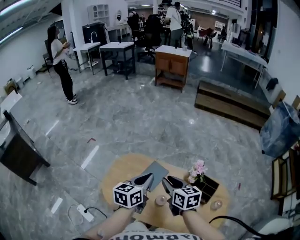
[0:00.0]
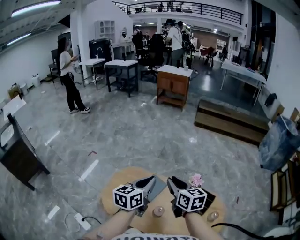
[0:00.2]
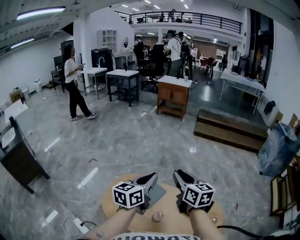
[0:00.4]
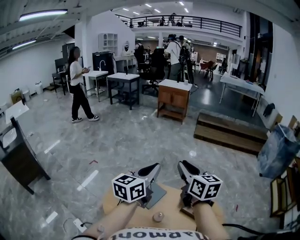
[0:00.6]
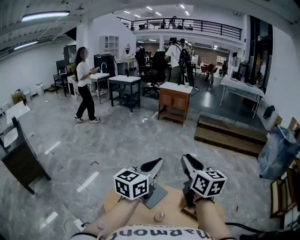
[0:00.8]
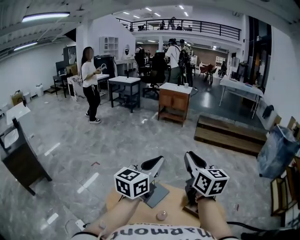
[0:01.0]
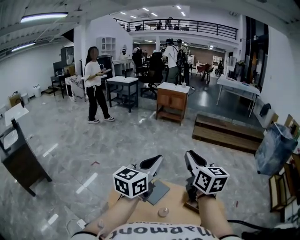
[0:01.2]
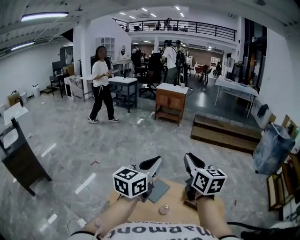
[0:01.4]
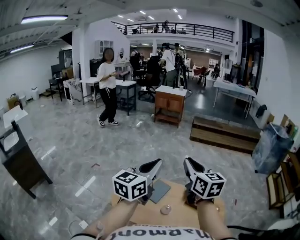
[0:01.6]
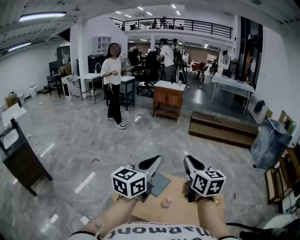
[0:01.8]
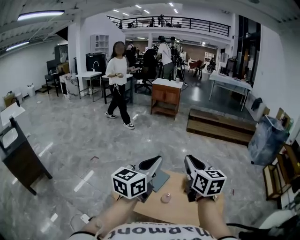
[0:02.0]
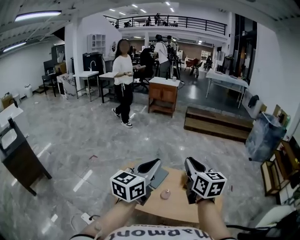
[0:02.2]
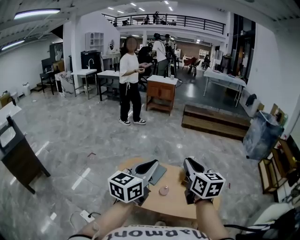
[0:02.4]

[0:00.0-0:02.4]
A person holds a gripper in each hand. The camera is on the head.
0:00.0 to 0:01.2: Both grippers travel together upward, approximately 25 cm. The left gripper turns by about 30 degrees; the right gripper rotates approximately 30 degrees.
0:01.2 to 0:02.4: Both grippers travel together backward, approximately 15 cm.

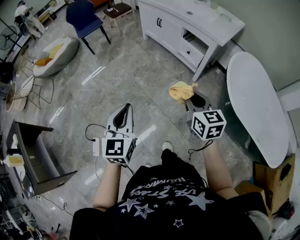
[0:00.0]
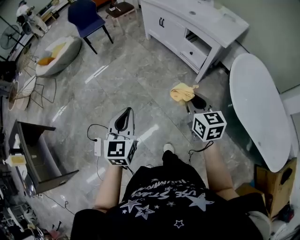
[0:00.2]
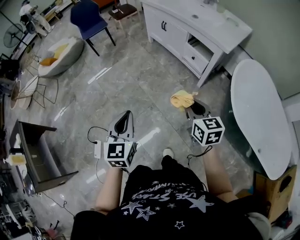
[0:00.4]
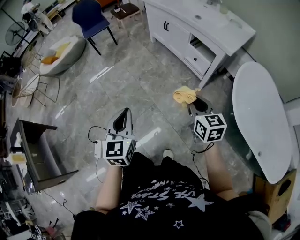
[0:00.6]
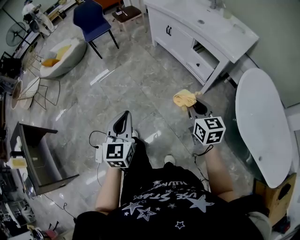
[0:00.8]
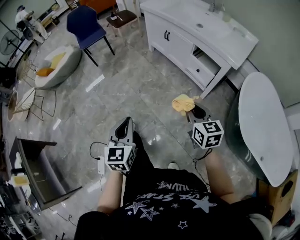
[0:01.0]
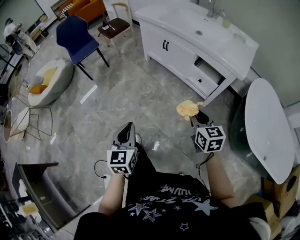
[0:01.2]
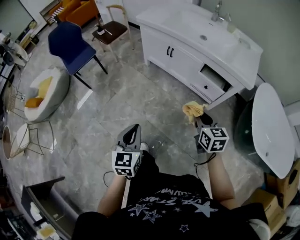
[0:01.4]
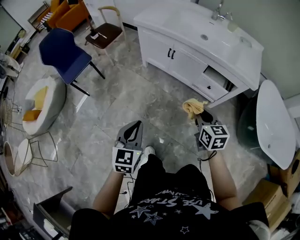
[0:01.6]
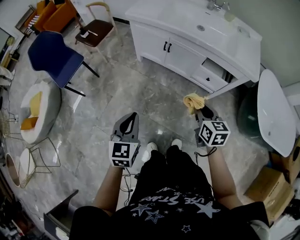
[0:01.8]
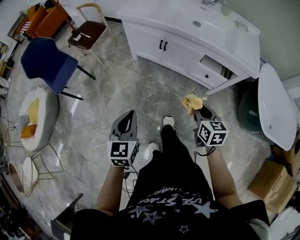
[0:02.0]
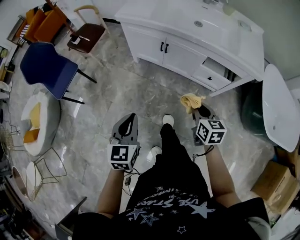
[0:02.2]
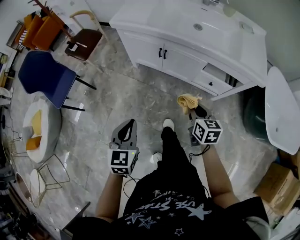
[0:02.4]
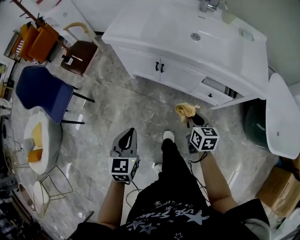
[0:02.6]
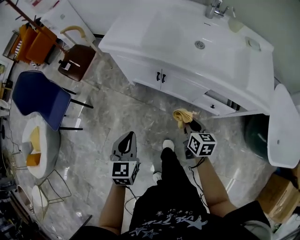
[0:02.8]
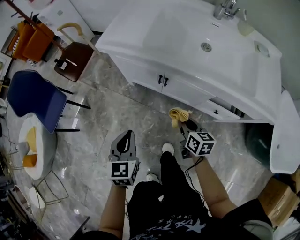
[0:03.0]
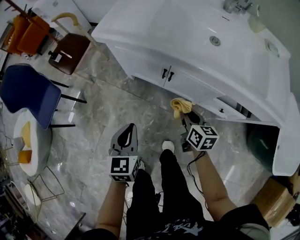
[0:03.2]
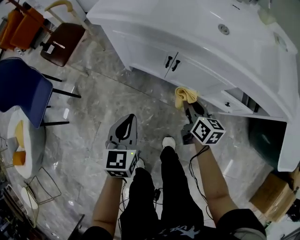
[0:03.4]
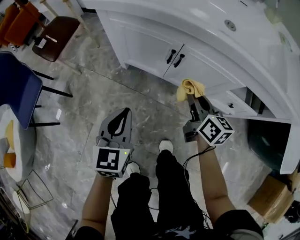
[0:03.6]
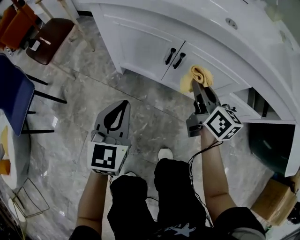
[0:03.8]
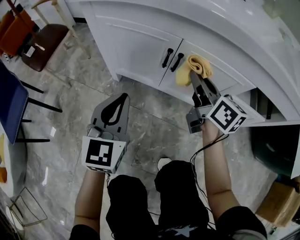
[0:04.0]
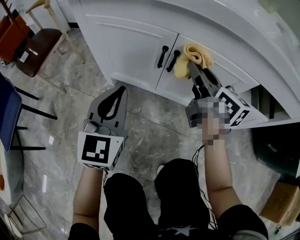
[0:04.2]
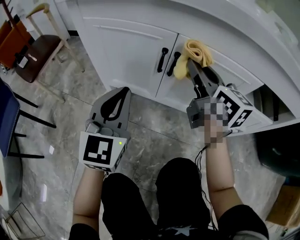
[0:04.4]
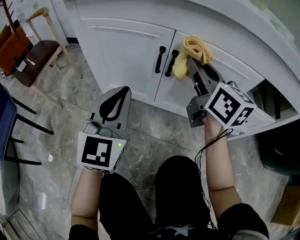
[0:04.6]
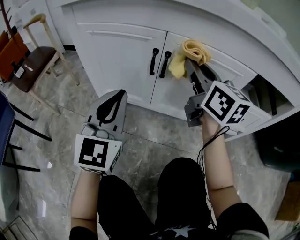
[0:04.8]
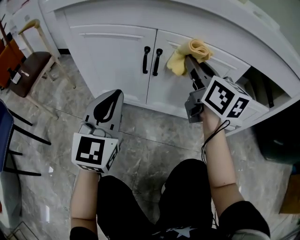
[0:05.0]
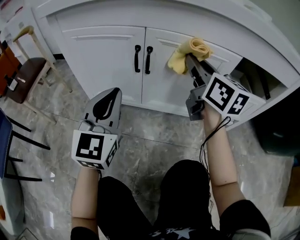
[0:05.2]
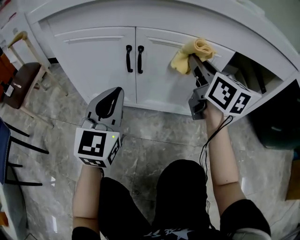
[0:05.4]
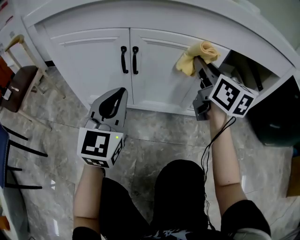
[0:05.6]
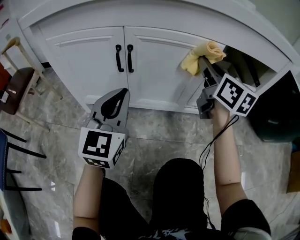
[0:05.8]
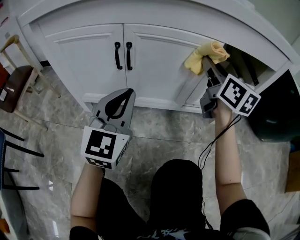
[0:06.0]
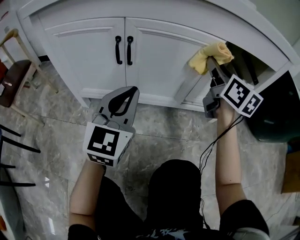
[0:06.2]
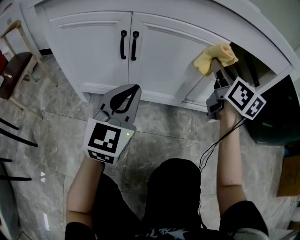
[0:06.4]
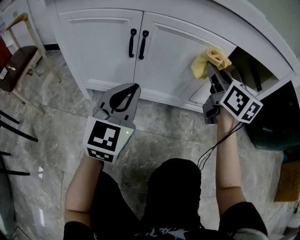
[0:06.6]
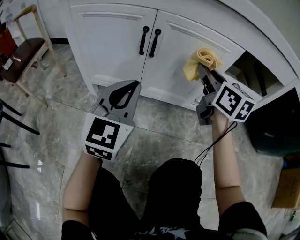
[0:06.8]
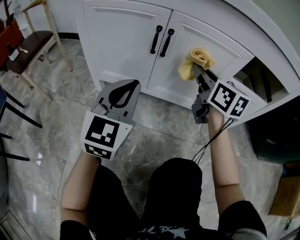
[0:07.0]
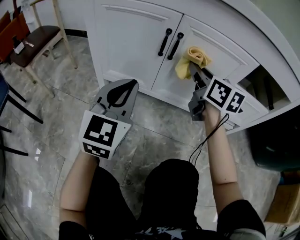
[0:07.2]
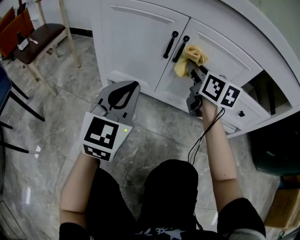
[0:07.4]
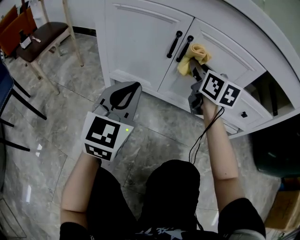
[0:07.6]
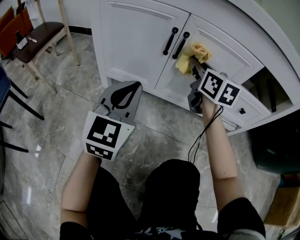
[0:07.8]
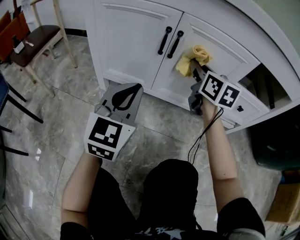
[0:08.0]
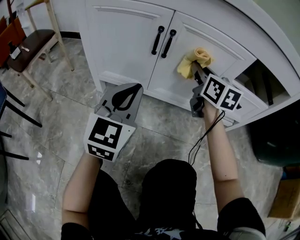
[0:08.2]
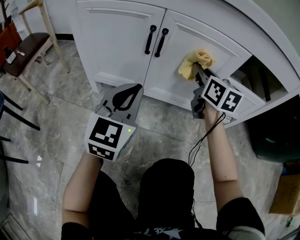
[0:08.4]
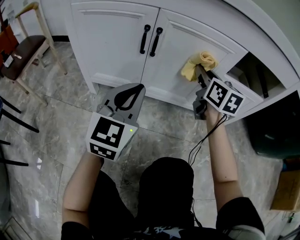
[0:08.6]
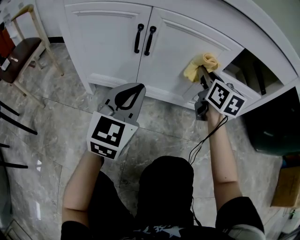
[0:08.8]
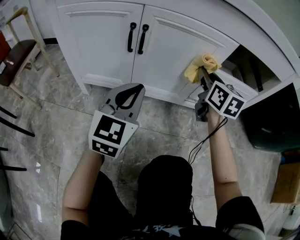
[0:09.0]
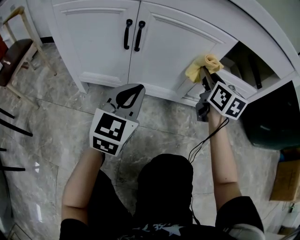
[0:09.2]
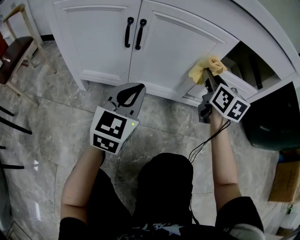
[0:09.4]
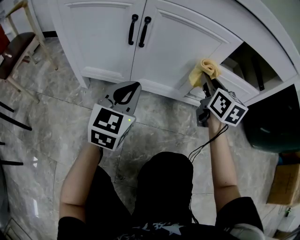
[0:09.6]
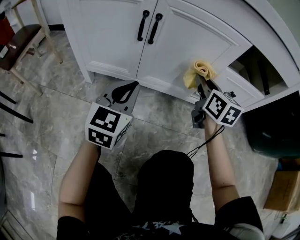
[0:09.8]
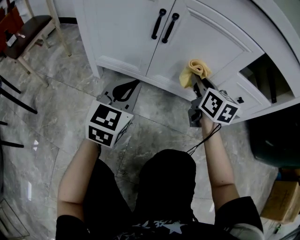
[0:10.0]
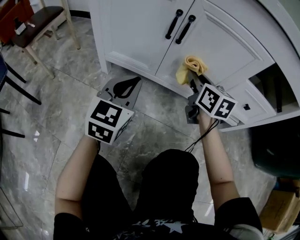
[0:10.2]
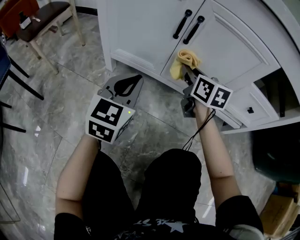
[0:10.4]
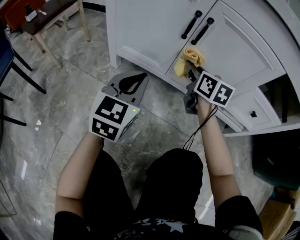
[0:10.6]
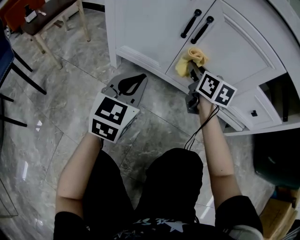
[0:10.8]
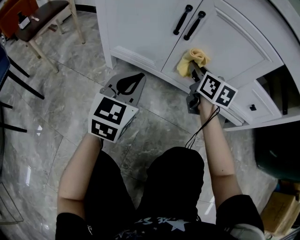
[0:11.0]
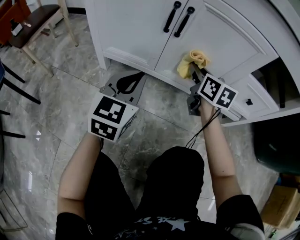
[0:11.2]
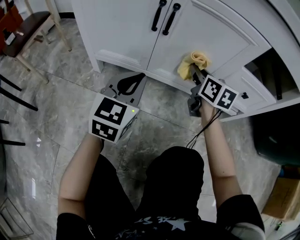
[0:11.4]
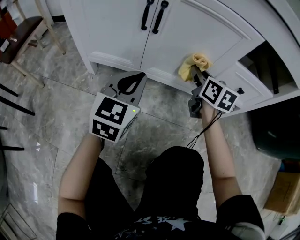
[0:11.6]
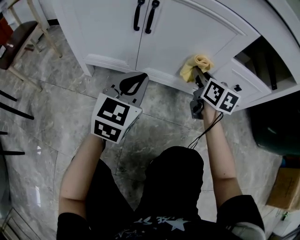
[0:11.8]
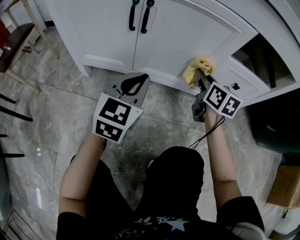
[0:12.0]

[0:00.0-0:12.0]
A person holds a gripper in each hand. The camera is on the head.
0:00.0 to 0:01.6: Both grippers are carried approximately 50 cm. The right gripper turns by approximately 20 degrees; the left gripper turns by approximately 30 degrees.
0:01.6 to 0:03.0: The right gripper shifts some 40 cm forward and downward, and rotates roughly 20 degrees; the left gripper travels forward by approximately 35 cm.
0:03.0 to 0:04.4: The right gripper is displaced forward and downward by about 20 cm, and rotates about 30 degrees, while the left gripper shifts approximately 30 cm downward and forward, and turns by approximately 30 degrees.
0:04.4 to 0:06.0: The left gripper heads to the right, covering about 10 cm, while the right gripper travels to the right by some 20 cm, and turns by approximately 20 degrees.
0:06.0 to 0:07.6: The right gripper is displaced to the left by about 20 cm; the left gripper travels to the left by roughly 10 cm.
0:07.6 to 0:09.0: The right gripper moves to the right, approximately 20 cm, while the left gripper shifts approximately 10 cm to the right.
0:09.0 to 0:10.4: The right gripper travels to the left and downward by some 20 cm, and turns by approximately 20 degrees; the left gripper shifts roughly 10 cm to the left and downward.
0:10.4 to 0:12.0: The left gripper heads to the right, covering some 15 cm. Meanwhile the right gripper travels to the right by about 20 cm.

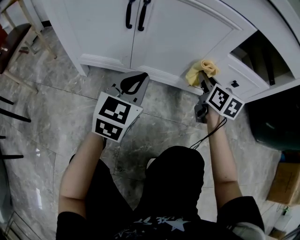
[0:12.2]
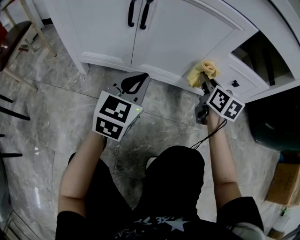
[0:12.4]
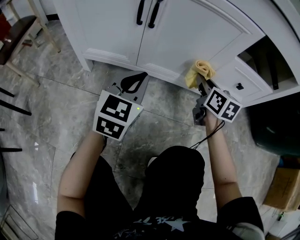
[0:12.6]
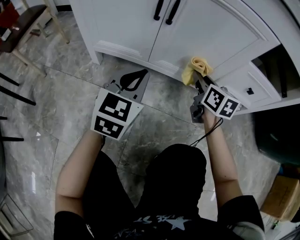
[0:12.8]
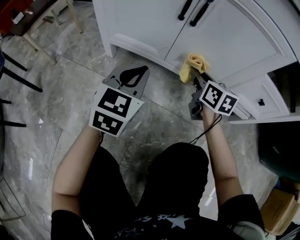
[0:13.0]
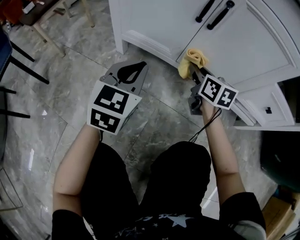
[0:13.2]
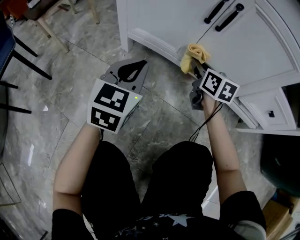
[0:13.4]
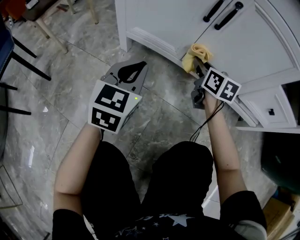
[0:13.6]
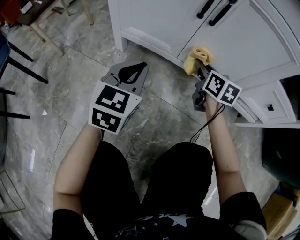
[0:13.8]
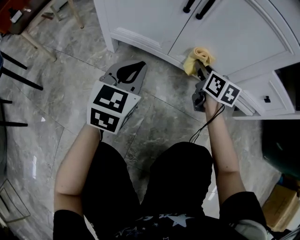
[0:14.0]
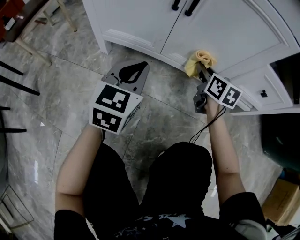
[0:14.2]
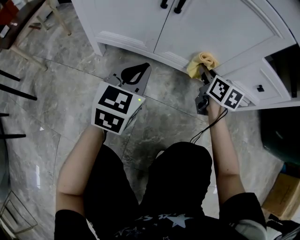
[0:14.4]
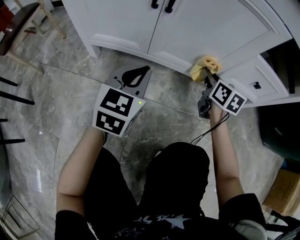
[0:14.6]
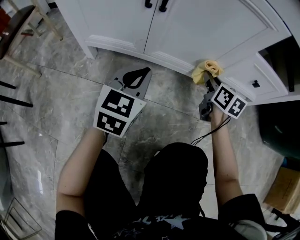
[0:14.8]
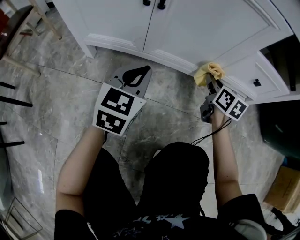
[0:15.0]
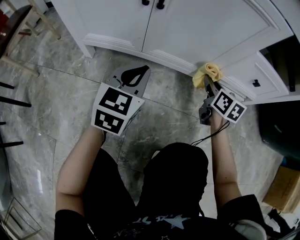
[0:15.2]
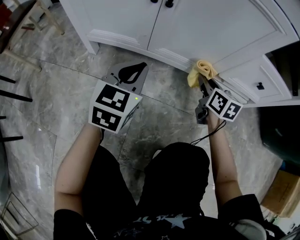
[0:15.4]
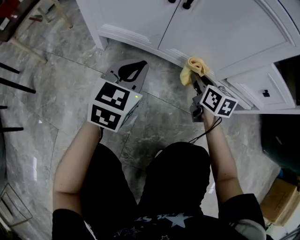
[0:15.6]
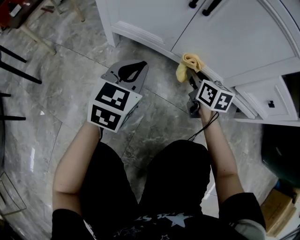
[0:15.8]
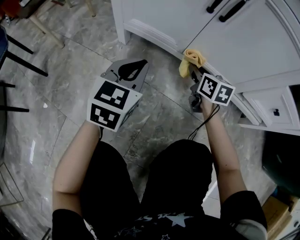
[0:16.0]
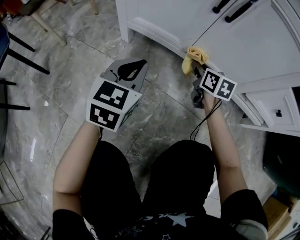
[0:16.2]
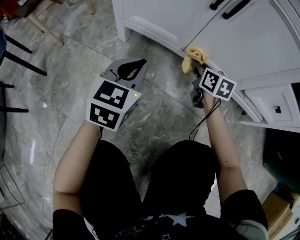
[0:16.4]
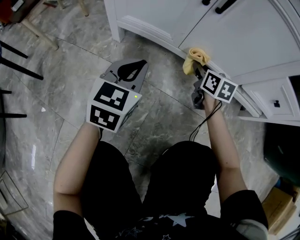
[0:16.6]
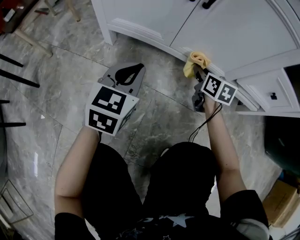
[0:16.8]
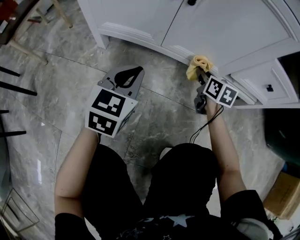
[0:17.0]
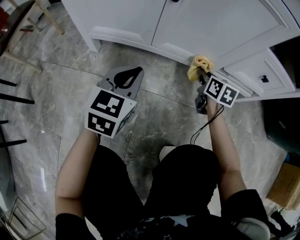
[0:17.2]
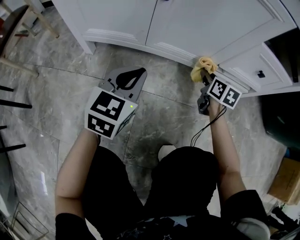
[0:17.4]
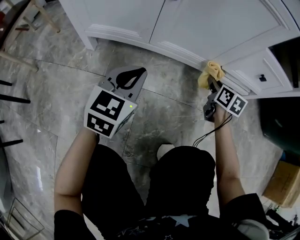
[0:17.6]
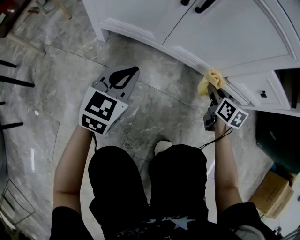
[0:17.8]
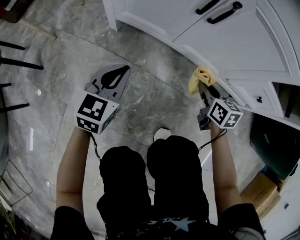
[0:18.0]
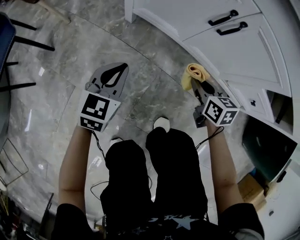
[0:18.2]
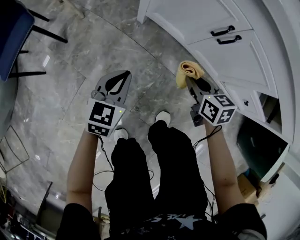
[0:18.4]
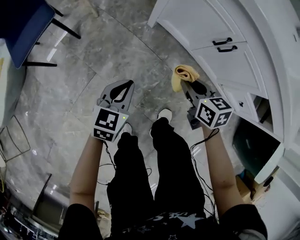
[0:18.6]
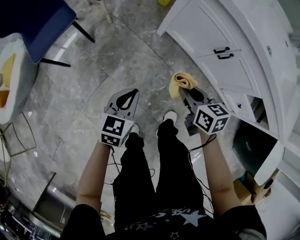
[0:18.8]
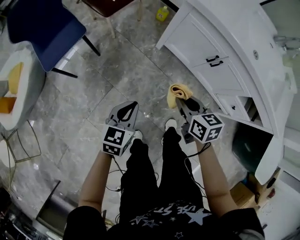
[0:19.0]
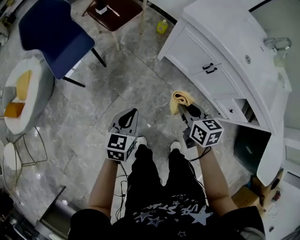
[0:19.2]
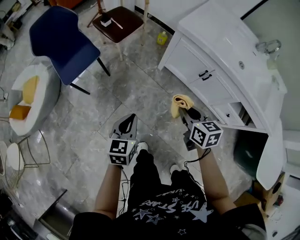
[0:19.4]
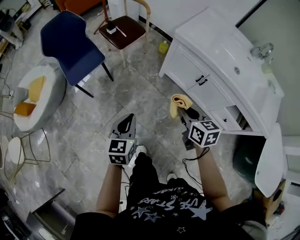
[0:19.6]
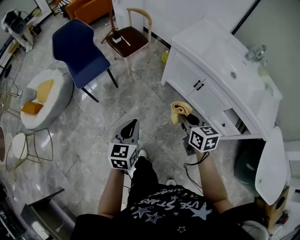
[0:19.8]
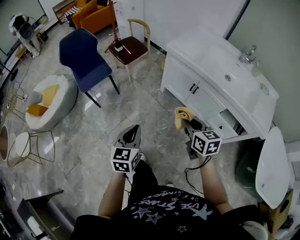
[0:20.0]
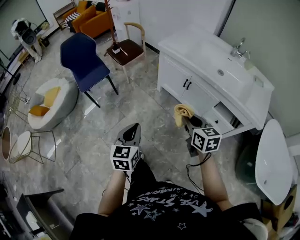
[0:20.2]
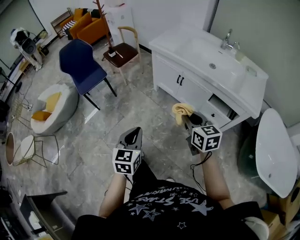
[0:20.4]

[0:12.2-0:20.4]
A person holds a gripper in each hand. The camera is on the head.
0:12.2 to 0:13.8: The grippers both shift to the left by roughly 20 cm.
0:13.8 to 0:15.4: The left gripper is displaced to the right by approximately 10 cm, while the right gripper heads to the right, covering roughly 15 cm.
0:15.4 to 0:17.2: The right gripper goes to the left and returns, approximately 20 cm each way; the left gripper reaches approximately 15 cm to the left, then returns.
0:17.2 to 0:18.8: The right gripper shifts by roughly 60 cm, and rotates about 50 degrees, while the left gripper shifts by some 40 cm, and swivels approximately 30 degrees.
0:18.8 to 0:20.4: Both grippers travel together upward and backward, approximately 50 cm. The right gripper swivels approximately 20 degrees.

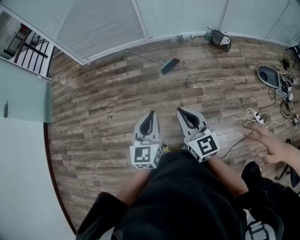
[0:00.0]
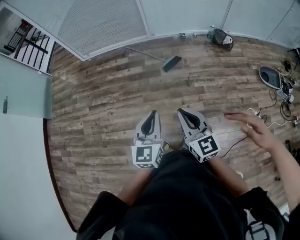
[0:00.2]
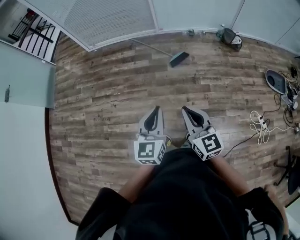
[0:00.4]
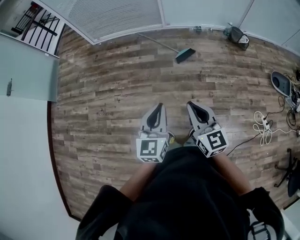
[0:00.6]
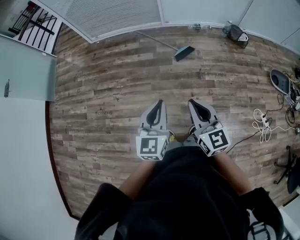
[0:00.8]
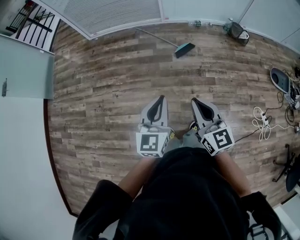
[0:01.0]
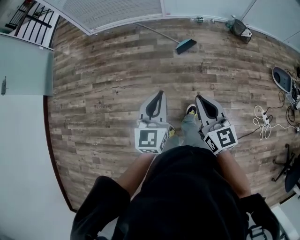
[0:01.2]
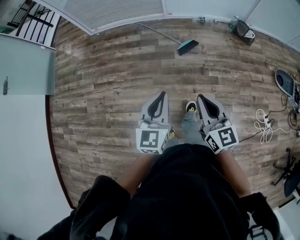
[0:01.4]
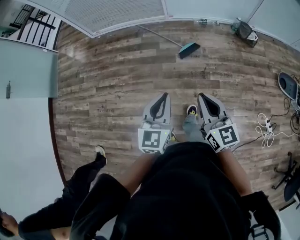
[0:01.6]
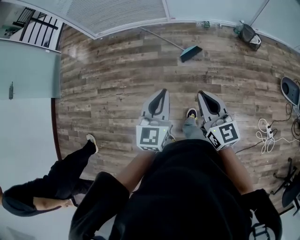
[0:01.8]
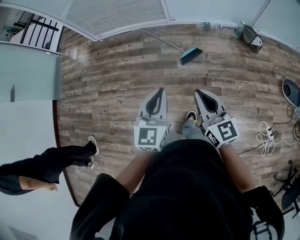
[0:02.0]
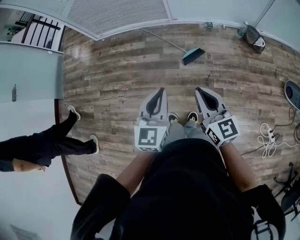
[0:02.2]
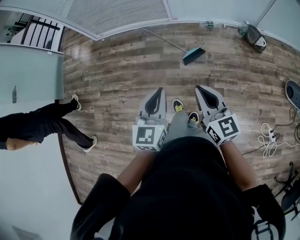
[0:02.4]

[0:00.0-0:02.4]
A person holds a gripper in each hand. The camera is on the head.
0:00.0 to 0:01.2: The right gripper is displaced forward by some 5 cm. The left gripper heads forward and to the left, covering about 10 cm.
0:01.2 to 0:02.4: Both grippers travel together forward and to the right, roughly 25 cm.
